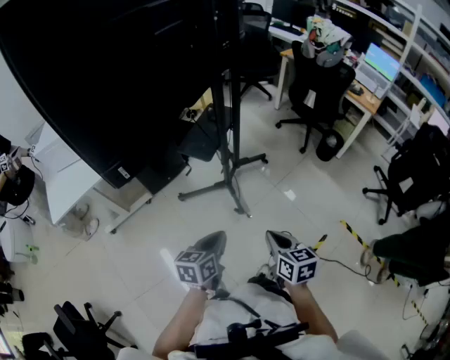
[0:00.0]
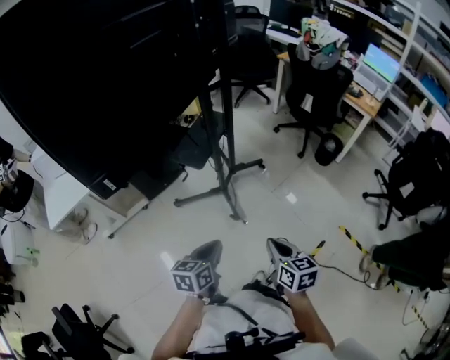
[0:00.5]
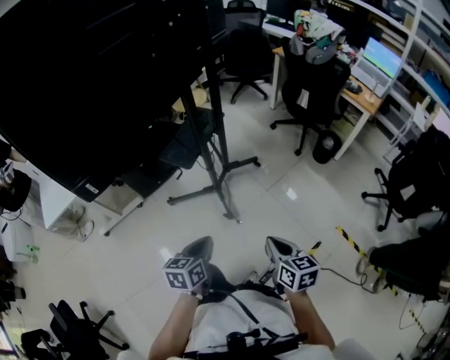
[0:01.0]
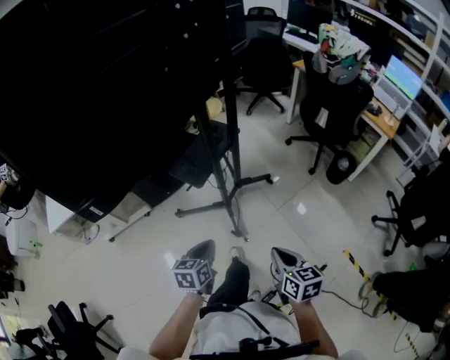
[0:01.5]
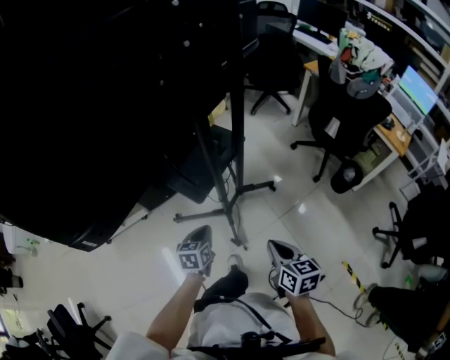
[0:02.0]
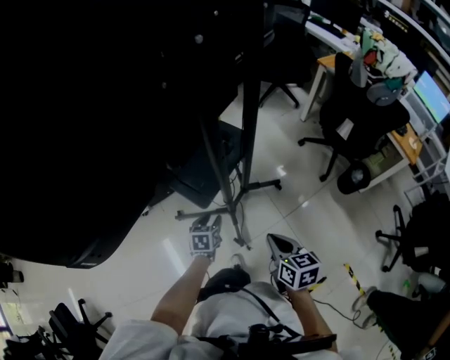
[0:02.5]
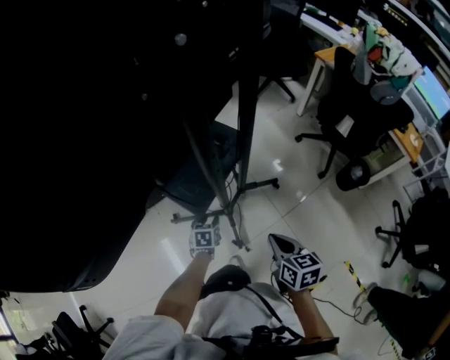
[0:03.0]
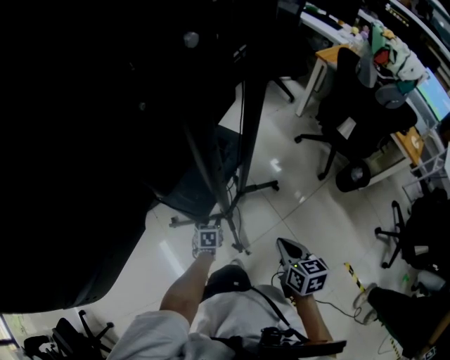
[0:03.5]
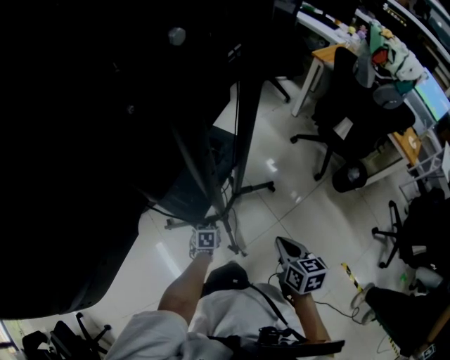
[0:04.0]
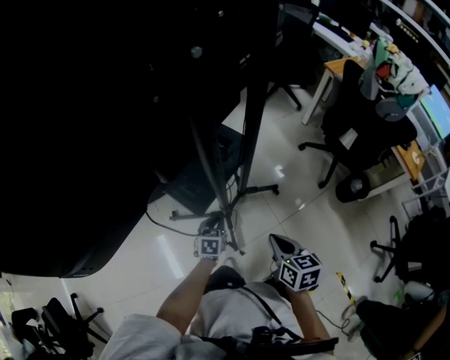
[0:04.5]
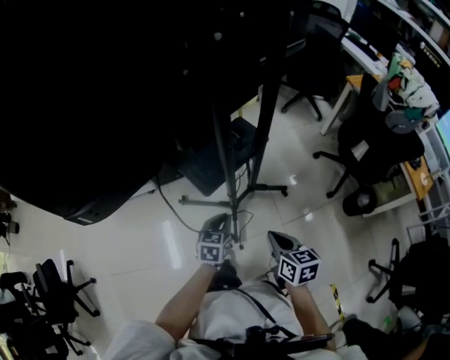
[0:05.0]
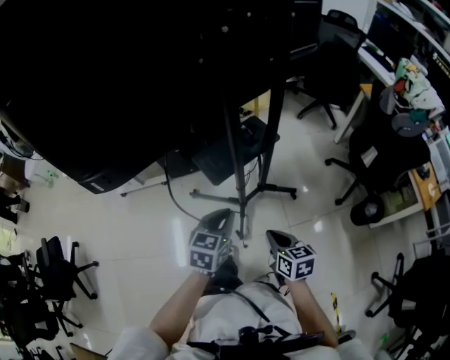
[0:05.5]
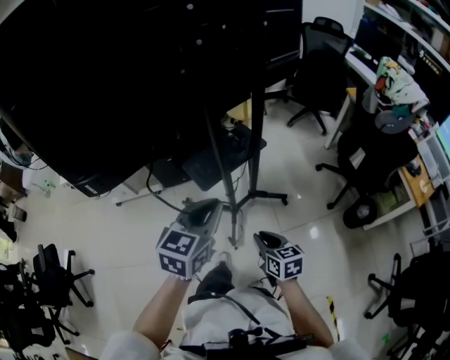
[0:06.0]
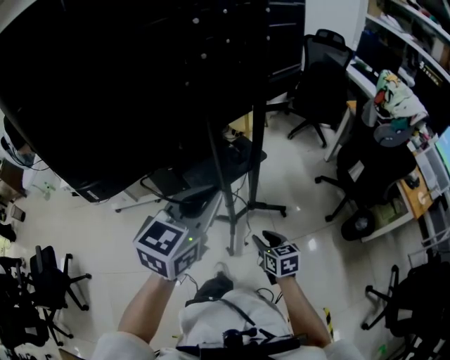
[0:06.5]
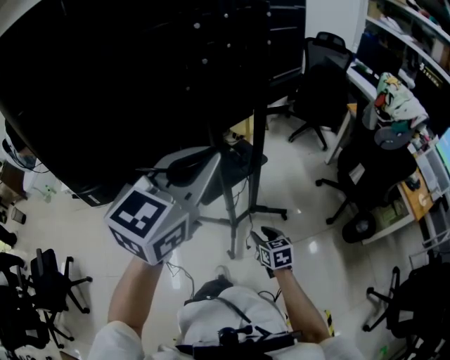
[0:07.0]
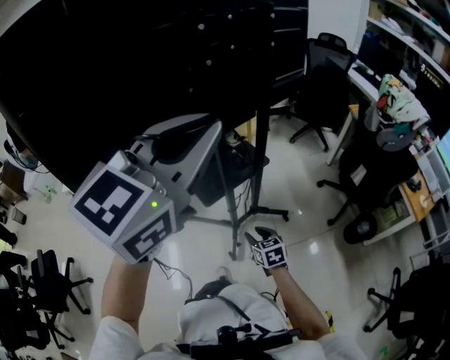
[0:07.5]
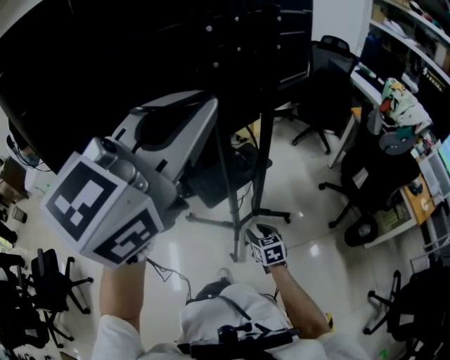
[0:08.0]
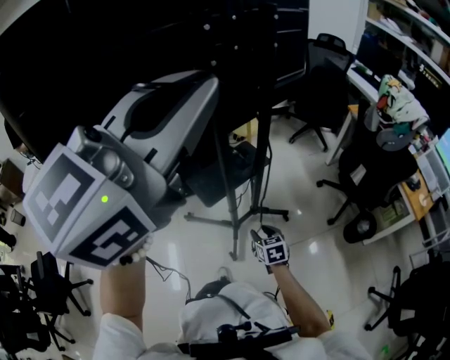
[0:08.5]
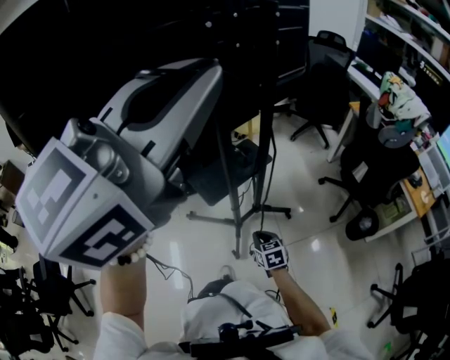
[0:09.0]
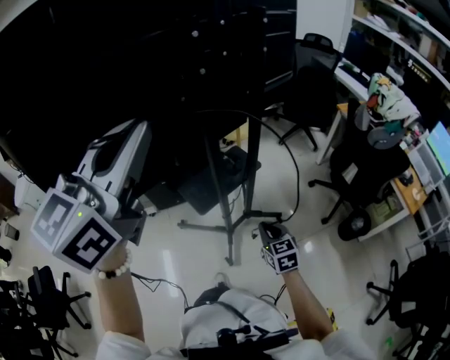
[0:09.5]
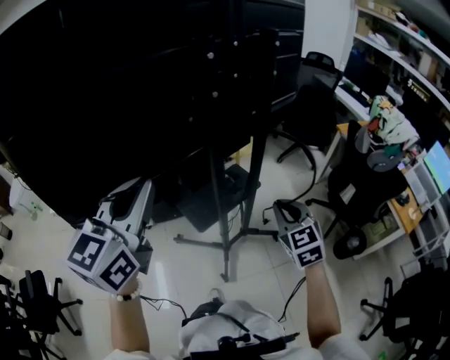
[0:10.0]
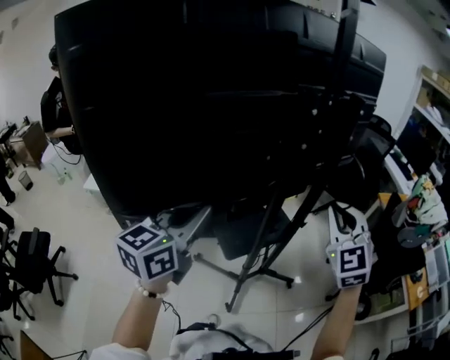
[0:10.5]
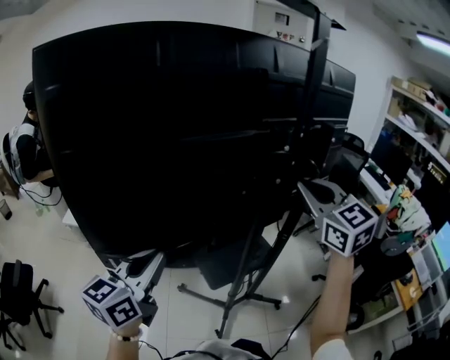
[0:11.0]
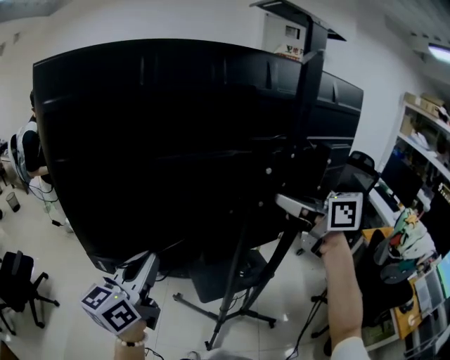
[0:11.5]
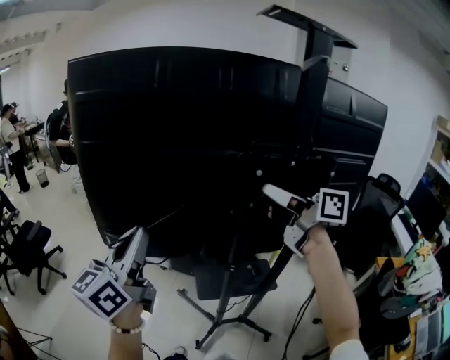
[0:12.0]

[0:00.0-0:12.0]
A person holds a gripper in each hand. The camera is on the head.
0:00.0 to 0:02.0: The right gripper shifts roughly 25 cm forward. Meanwhile the left gripper travels forward and downward by some 35 cm, and swivels some 20 degrees.
0:02.0 to 0:04.0: The right gripper moves forward and downward, about 20 cm, while the left gripper goes roughly 30 cm downward and forward, turns by approximately 20 degrees, and opens and closes again.
0:04.0 to 0:06.0: The right gripper moves backward, roughly 10 cm, and rotates approximately 30 degrees; the left gripper moves upward and backward, roughly 50 cm, and points its fingers roughly 40 degrees further upward.
0:06.0 to 0:08.0: The left gripper moves upward, roughly 35 cm, and rotates approximately 30 degrees, while the right gripper shifts roughly 10 cm forward.
0:08.0 to 0:10.0: The right gripper is displaced upward by some 25 cm, rotates roughly 30 degrees, and closes up. Meanwhile the left gripper travels to the left and downward by roughly 20 cm.
0:10.0 to 0:12.0: The left gripper goes approximately 5 cm upward, and turns by some 40 degrees; the right gripper heads upward, covering approximately 30 cm, and tips its fingers upward by some 30 degrees.

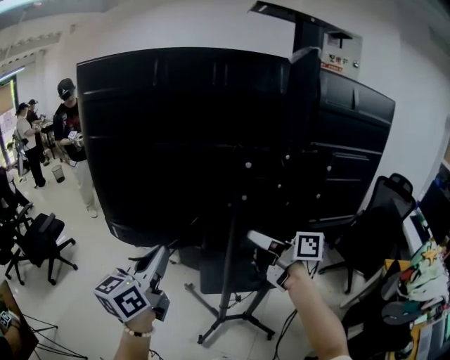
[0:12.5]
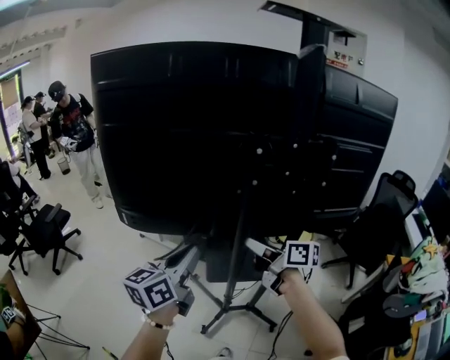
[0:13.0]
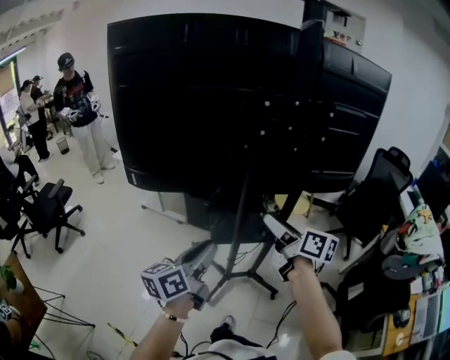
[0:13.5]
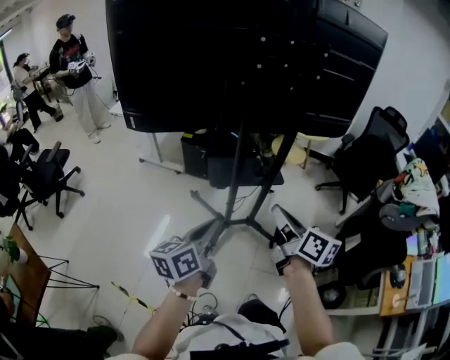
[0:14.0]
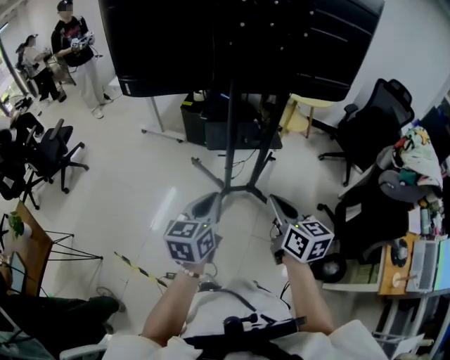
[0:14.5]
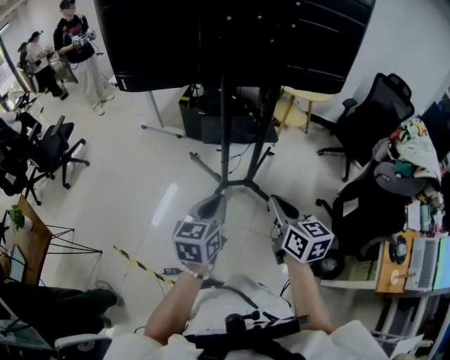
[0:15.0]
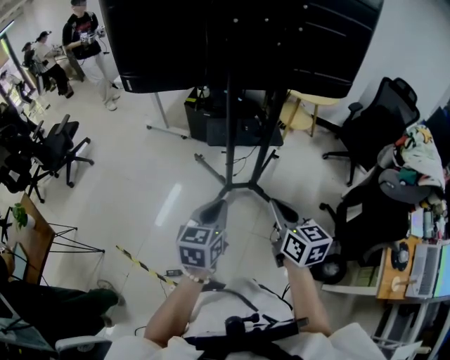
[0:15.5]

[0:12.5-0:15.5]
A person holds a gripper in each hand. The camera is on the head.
0:12.5 to 0:14.0: Both grippers travel together backward and downward, roughly 35 cm. The left gripper swivels approximately 20 degrees. Meanwhile the right gripper turns by approximately 30 degrees, and opens, then closes again.
0:14.0 to 0:15.5: The right gripper goes about 15 cm backward, downward and to the right, and rotates roughly 30 degrees. Meanwhile the left gripper heads to the right and backward, covering some 15 cm, and rotates approximately 30 degrees.

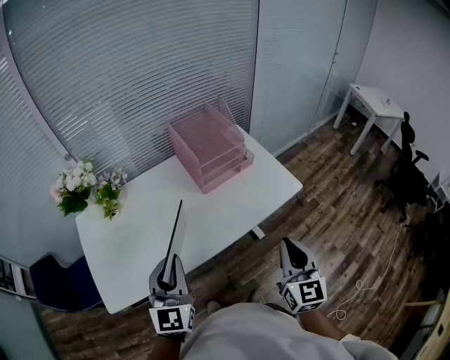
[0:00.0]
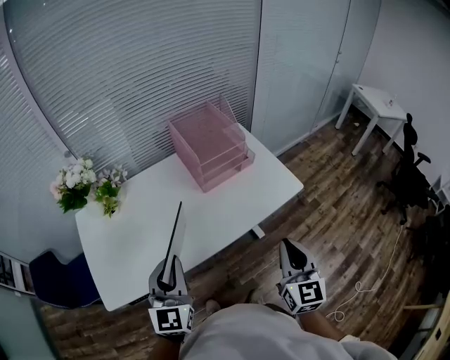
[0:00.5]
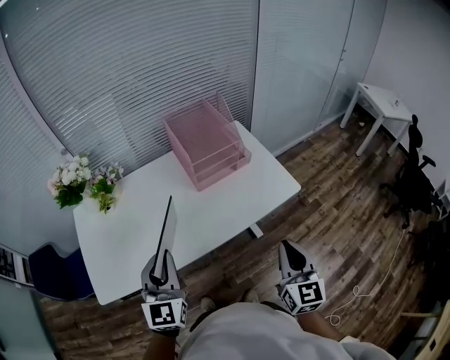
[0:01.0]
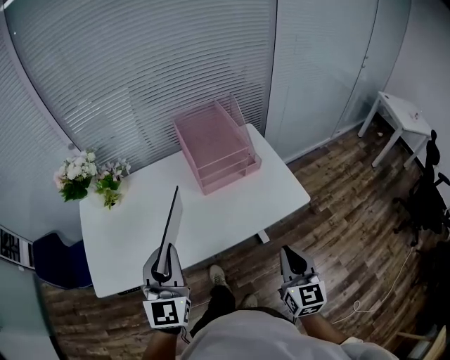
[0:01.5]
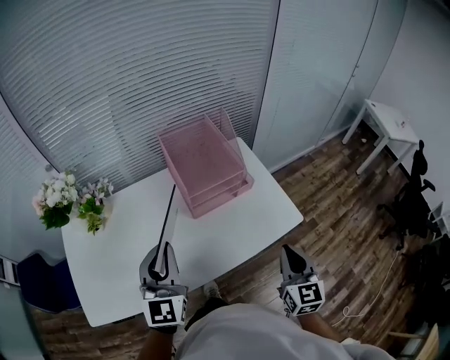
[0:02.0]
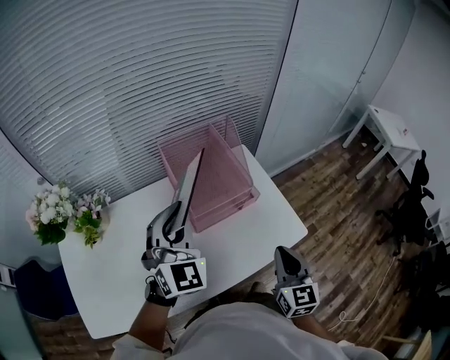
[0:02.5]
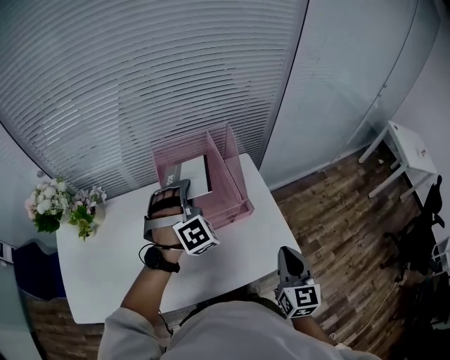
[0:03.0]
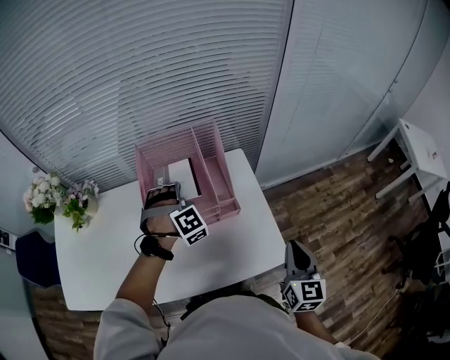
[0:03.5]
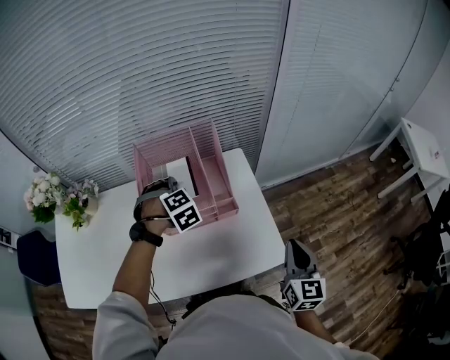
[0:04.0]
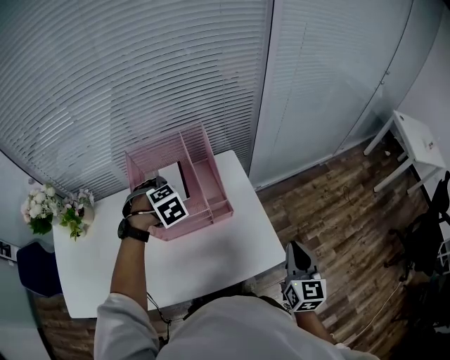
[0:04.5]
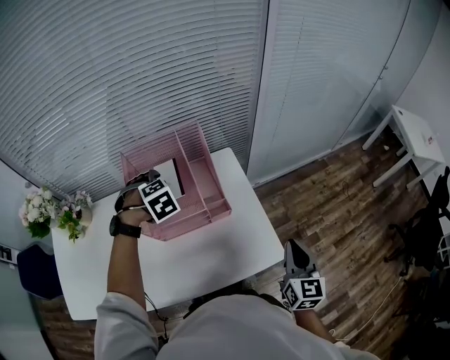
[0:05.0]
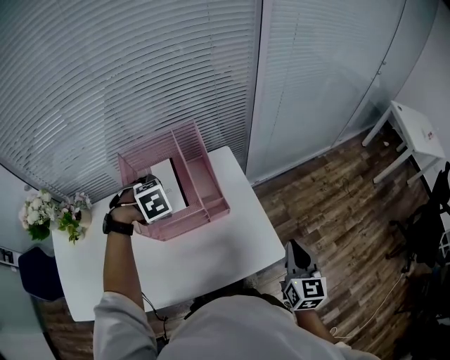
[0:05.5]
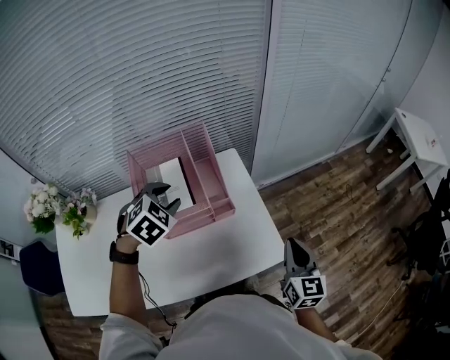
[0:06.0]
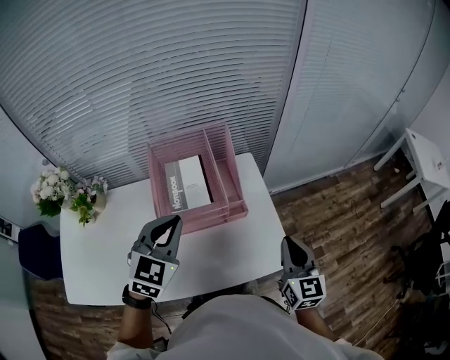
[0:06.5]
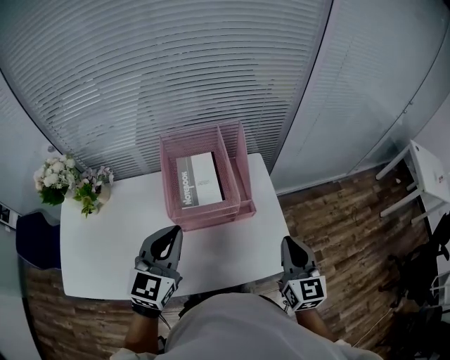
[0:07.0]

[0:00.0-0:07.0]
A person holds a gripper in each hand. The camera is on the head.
0:00.0 to 0:02.0: The left gripper shifts some 15 cm forward; the right gripper shifts roughly 20 cm forward and to the right.
0:02.0 to 0:03.5: The left gripper is displaced forward, to the right and downward by roughly 35 cm, and tilts its fingers some 40 degrees downward. The right gripper goes roughly 25 cm to the right and forward.
0:03.5 to 0:05.0: The left gripper angles its fingers downward, by about 30 degrees, and opens.
0:05.0 to 0:07.0: The right gripper ends up roughly 10 cm from where it was. Meanwhile the left gripper shifts by approximately 20 cm, points its fingers roughly 60 degrees further upward, and closes up.

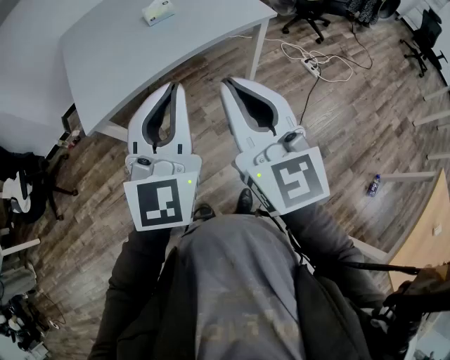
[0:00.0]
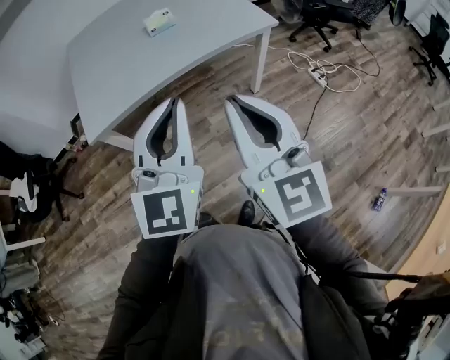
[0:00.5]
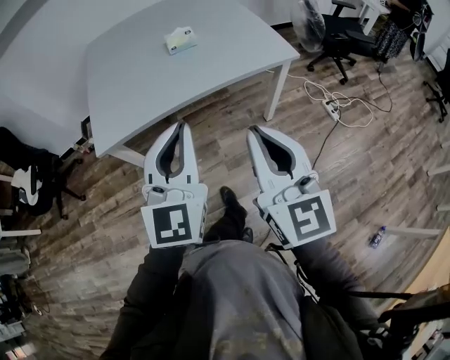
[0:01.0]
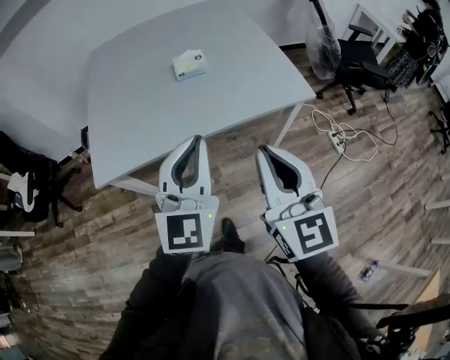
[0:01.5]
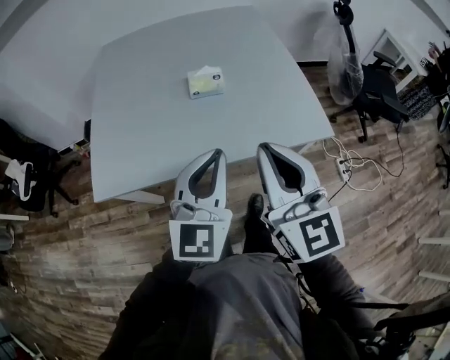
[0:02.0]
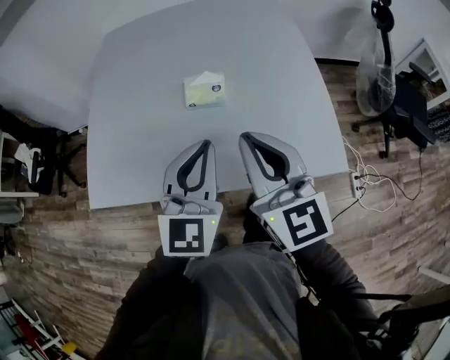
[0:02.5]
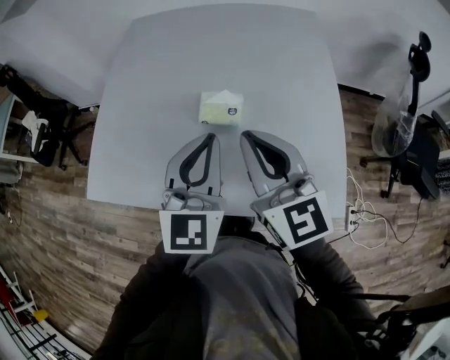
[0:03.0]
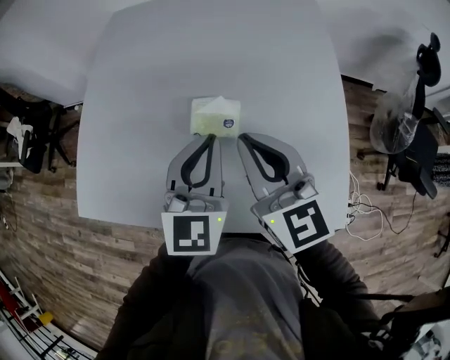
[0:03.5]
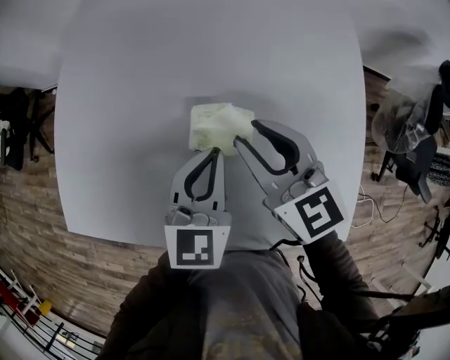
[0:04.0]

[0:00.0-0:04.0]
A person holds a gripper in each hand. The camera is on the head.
0:00.0 to 0:02.0: The two grippers go approximately 35 cm forward.
0:02.0 to 0:04.0: Both grippers travel together forward and downward, about 40 cm. The right gripper swivels about 40 degrees, and opens. Meanwhile the left gripper rotates some 30 degrees.
